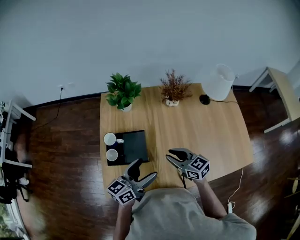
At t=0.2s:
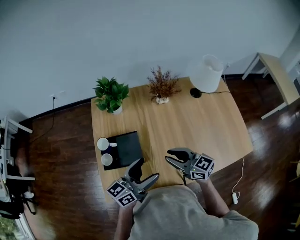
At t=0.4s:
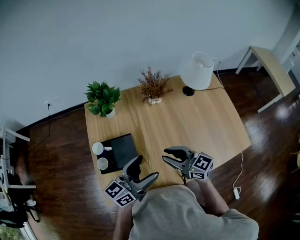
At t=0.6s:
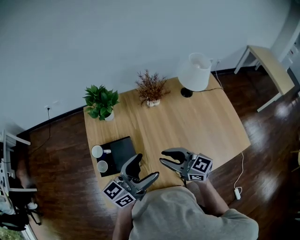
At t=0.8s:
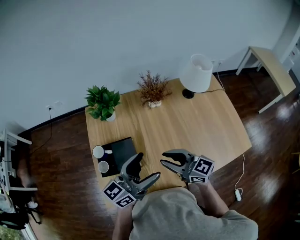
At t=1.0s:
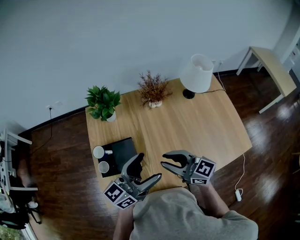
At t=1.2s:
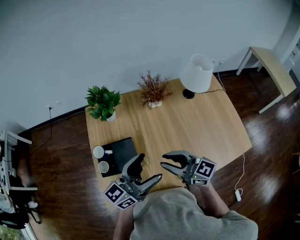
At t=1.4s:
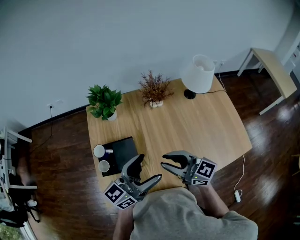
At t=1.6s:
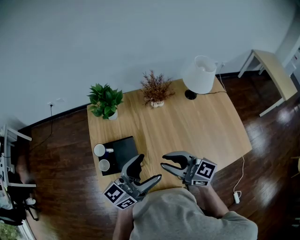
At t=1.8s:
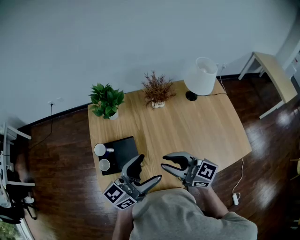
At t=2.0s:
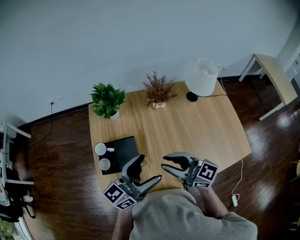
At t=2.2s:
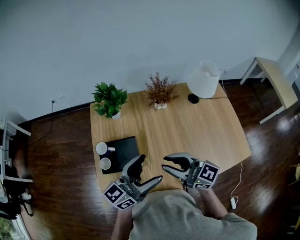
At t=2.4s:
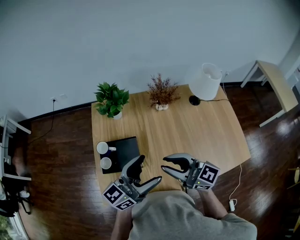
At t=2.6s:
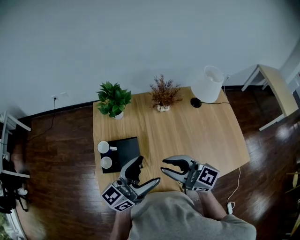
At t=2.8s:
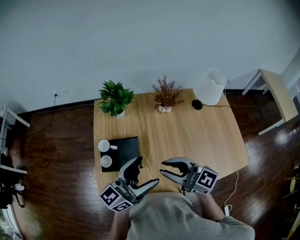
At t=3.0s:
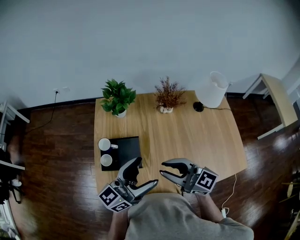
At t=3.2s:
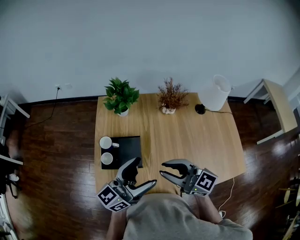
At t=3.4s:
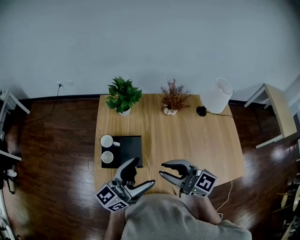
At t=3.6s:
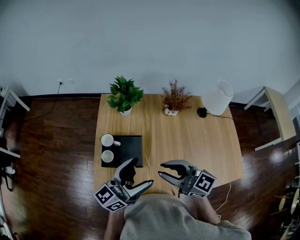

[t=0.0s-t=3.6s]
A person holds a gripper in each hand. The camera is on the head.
t=0.0s to t=1.8s: The left gripper moves upward and to the right, roughly 10 cm; the right gripper is displaced upward by about 15 cm.
t=1.8s to t=3.6s: The two grippers go roughly 5 cm to the left.

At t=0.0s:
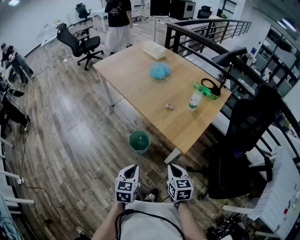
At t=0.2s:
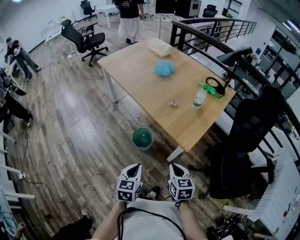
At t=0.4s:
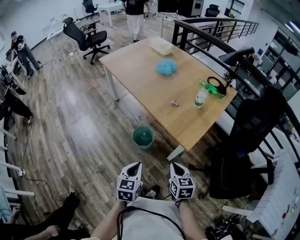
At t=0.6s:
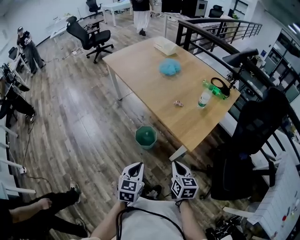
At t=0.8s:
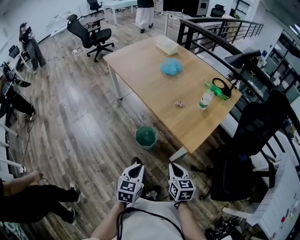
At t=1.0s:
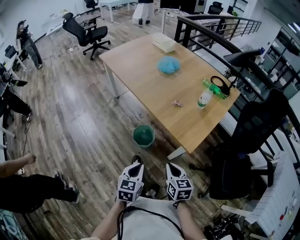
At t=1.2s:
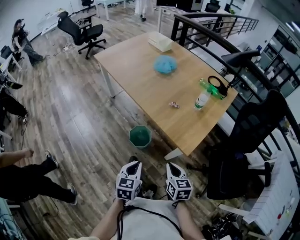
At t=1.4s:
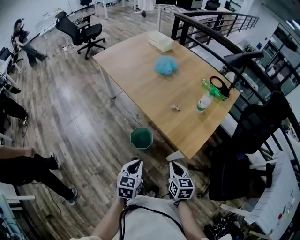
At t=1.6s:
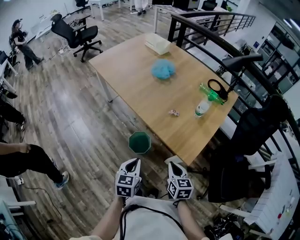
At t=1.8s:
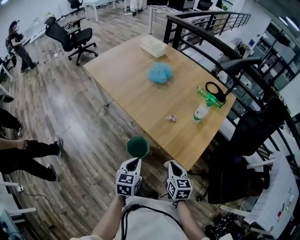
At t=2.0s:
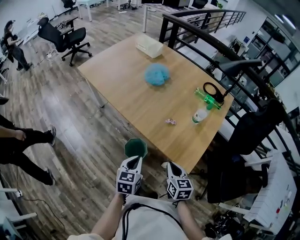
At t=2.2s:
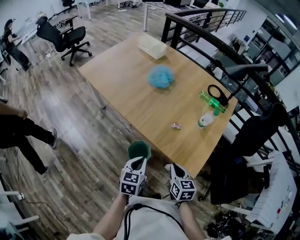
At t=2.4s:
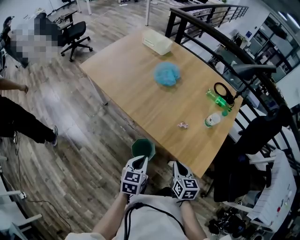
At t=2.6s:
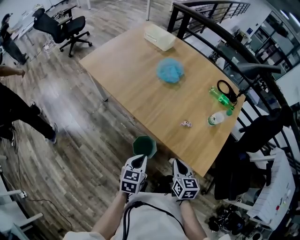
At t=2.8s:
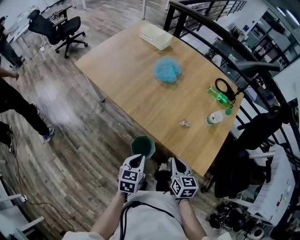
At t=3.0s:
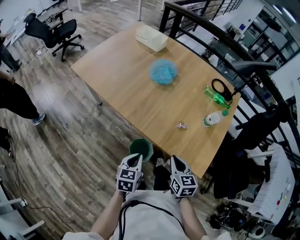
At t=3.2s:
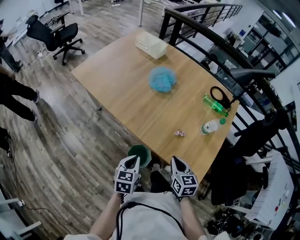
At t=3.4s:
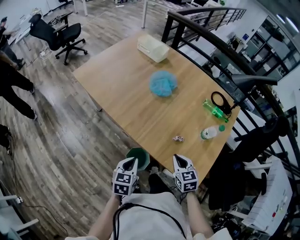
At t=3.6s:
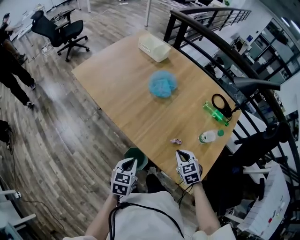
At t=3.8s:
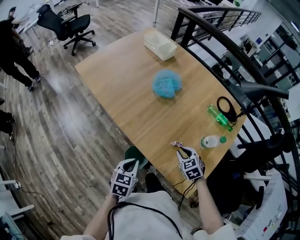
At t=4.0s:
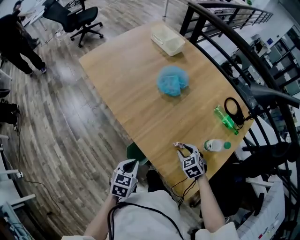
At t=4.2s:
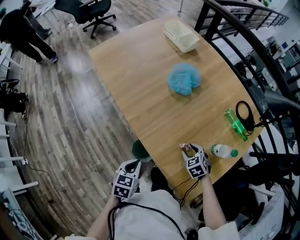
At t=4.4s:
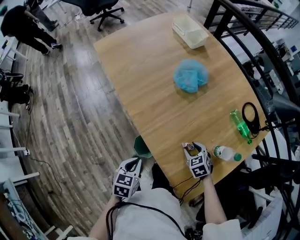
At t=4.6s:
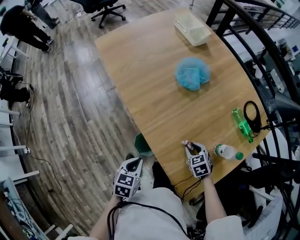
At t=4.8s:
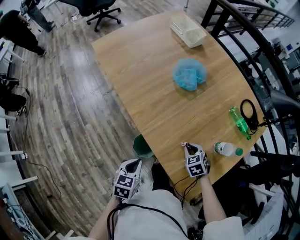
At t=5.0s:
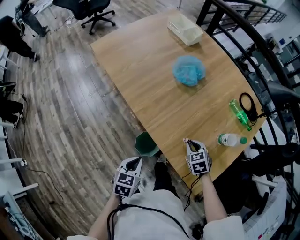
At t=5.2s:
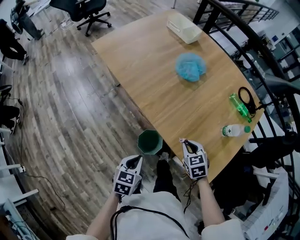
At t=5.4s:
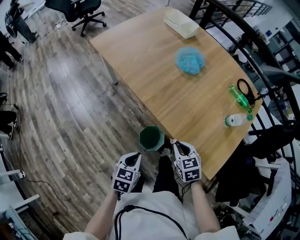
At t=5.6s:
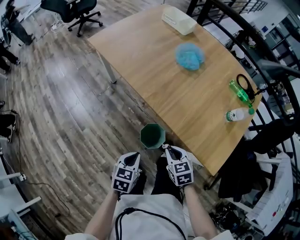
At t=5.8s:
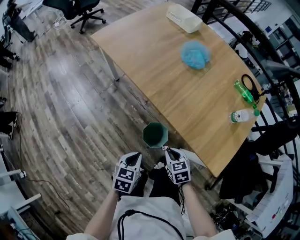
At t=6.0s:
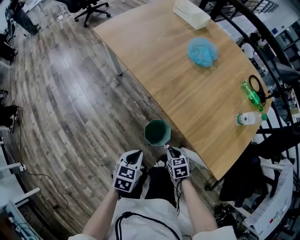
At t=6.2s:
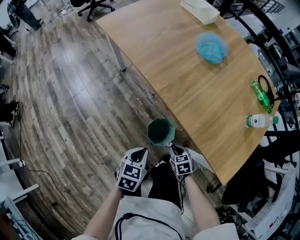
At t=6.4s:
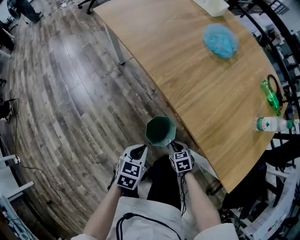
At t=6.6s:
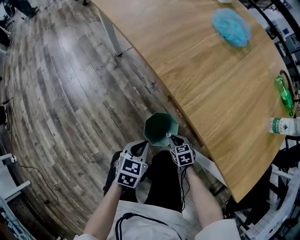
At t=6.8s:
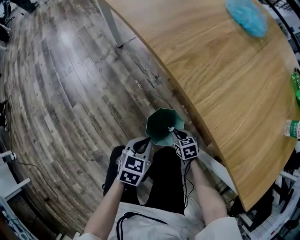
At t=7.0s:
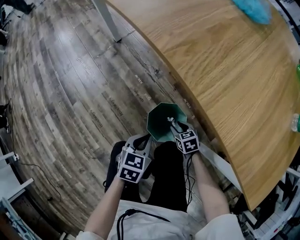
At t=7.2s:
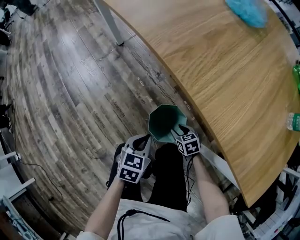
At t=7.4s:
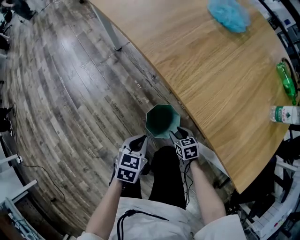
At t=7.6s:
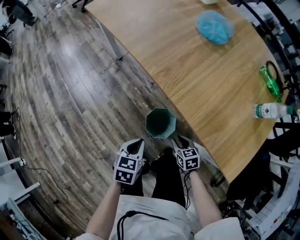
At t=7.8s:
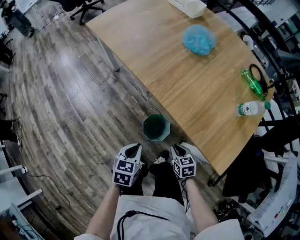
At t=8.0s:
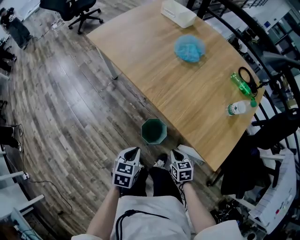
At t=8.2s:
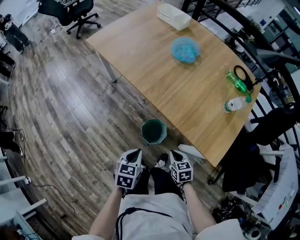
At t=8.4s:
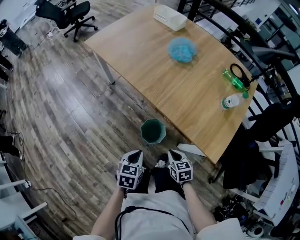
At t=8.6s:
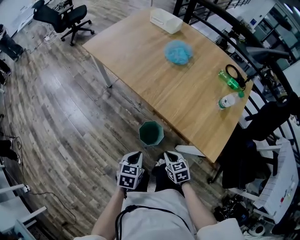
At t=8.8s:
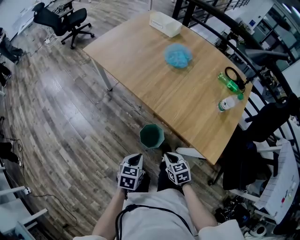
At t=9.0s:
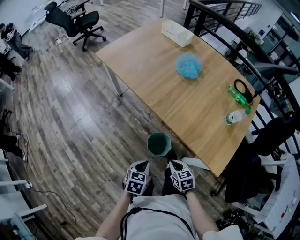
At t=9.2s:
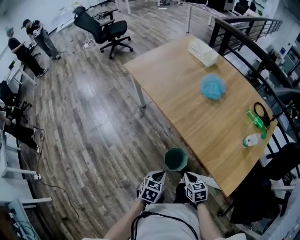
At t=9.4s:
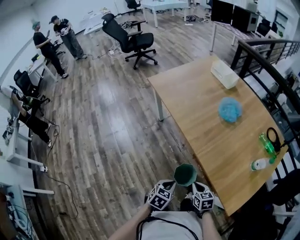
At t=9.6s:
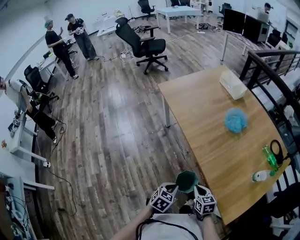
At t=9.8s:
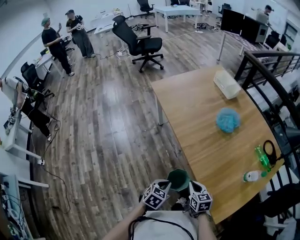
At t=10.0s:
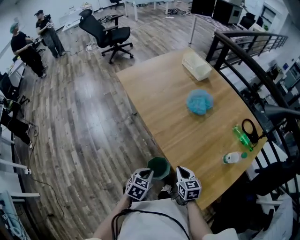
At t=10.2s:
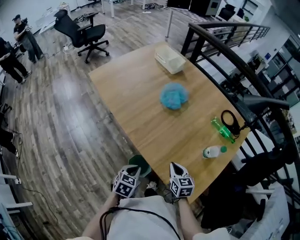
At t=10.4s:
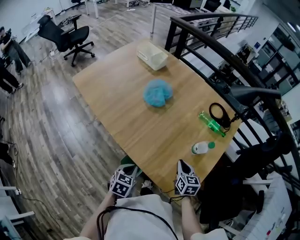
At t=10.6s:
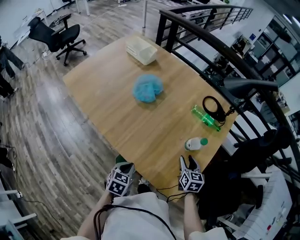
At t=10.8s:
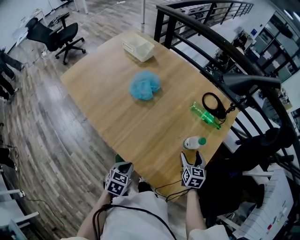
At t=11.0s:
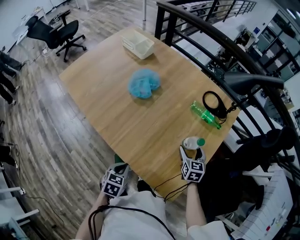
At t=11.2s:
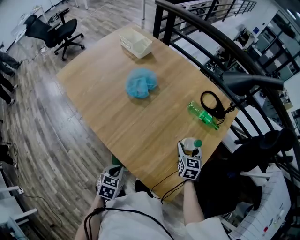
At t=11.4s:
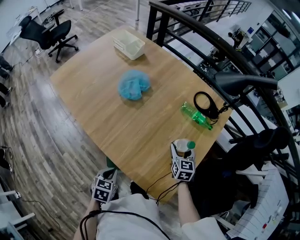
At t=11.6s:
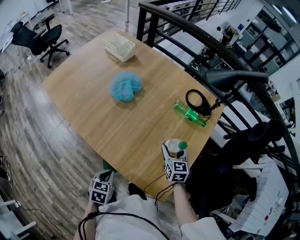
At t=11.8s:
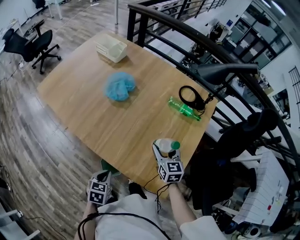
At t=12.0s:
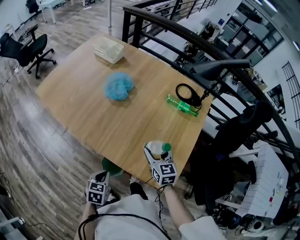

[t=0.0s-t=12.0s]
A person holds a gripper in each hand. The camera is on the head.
t=0.0s to t=1.6s: Both grippers move forward, roughly 10 cm.
t=1.6s to t=3.0s: The two grippers go some 20 cm forward and to the left.
t=3.0s to t=4.4s: The left gripper moves about 5 cm. The right gripper shifts about 25 cm forward, downward and to the right, turns by approximately 50 degrees, and opens its fingers.
t=4.4s to t=6.0s: The right gripper is displaced to the left, backward and downward by approximately 30 cm, rotates roughly 20 degrees, and closes up. Meanwhile the left gripper moves to the left, backward and downward, roughly 15 cm.
t=6.0s to t=7.6s: The left gripper shifts about 10 cm downward. The right gripper moves roughly 35 cm downward and comes back.
t=7.6s to t=9.0s: The right gripper heads upward, covering about 20 cm, while the left gripper moves upward, about 10 cm.
t=9.0s to t=10.4s: The left gripper moves to the right and forward, approximately 20 cm, while the right gripper heads to the right and forward, covering approximately 30 cm, and changes its angle by roughly 30 degrees.
t=10.4s to t=12.0s: The right gripper goes to the right and returns, about 10 cm each way, and opens.

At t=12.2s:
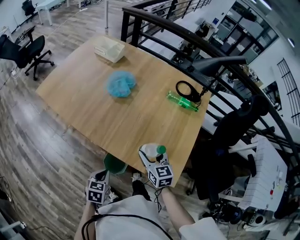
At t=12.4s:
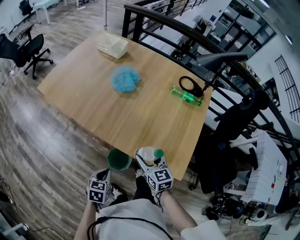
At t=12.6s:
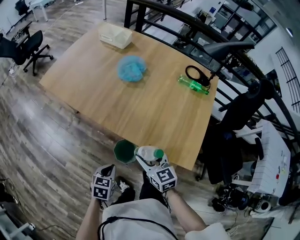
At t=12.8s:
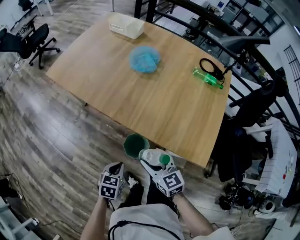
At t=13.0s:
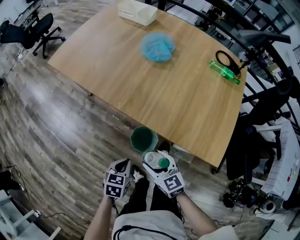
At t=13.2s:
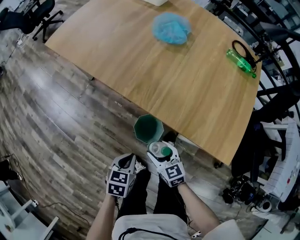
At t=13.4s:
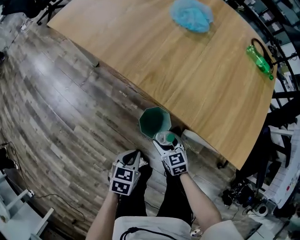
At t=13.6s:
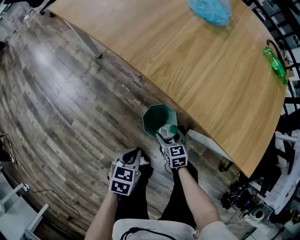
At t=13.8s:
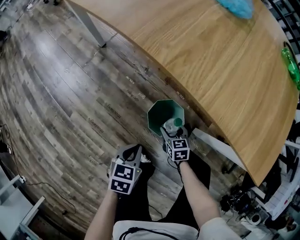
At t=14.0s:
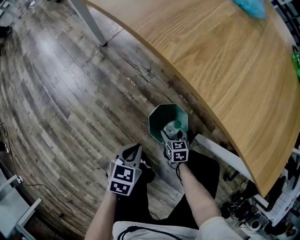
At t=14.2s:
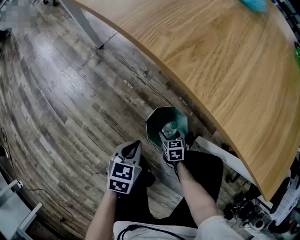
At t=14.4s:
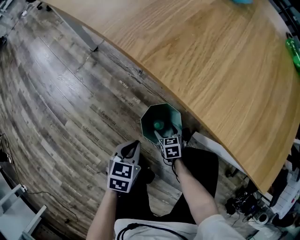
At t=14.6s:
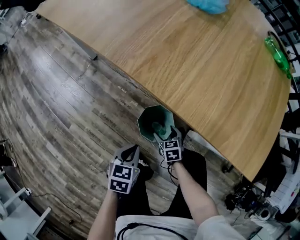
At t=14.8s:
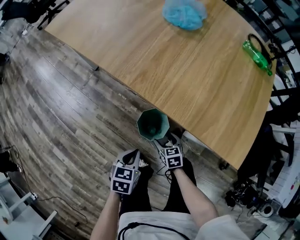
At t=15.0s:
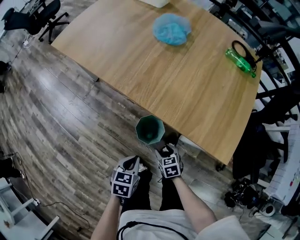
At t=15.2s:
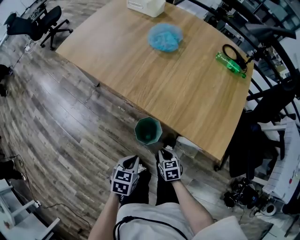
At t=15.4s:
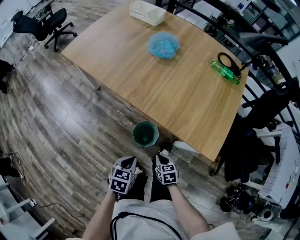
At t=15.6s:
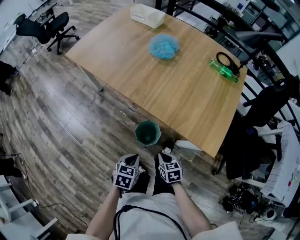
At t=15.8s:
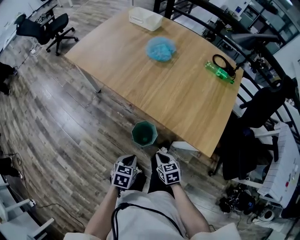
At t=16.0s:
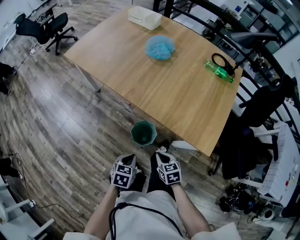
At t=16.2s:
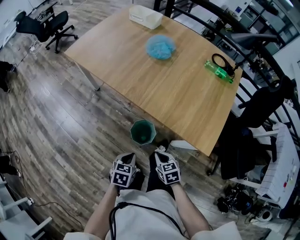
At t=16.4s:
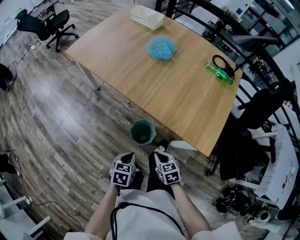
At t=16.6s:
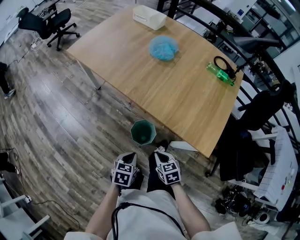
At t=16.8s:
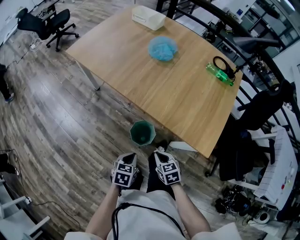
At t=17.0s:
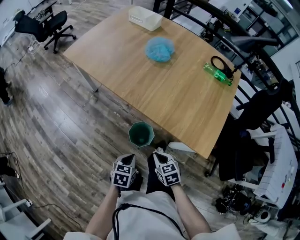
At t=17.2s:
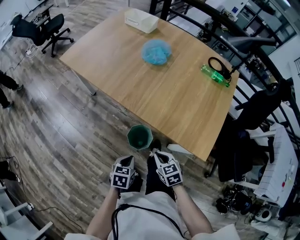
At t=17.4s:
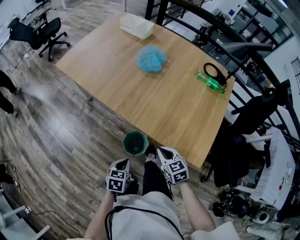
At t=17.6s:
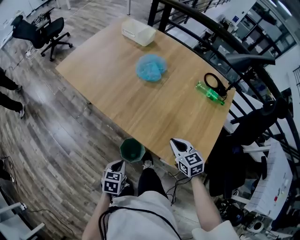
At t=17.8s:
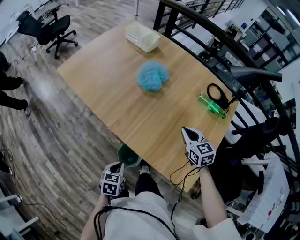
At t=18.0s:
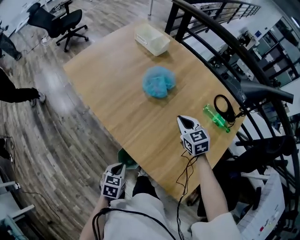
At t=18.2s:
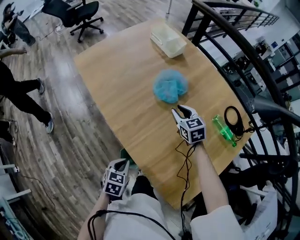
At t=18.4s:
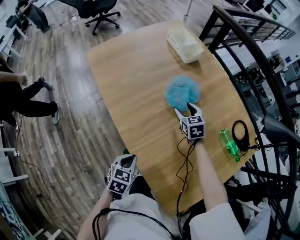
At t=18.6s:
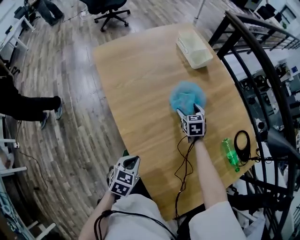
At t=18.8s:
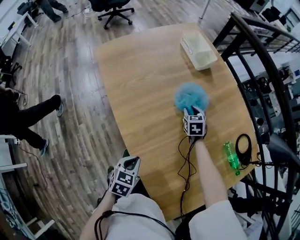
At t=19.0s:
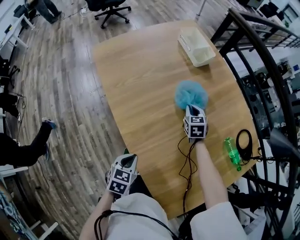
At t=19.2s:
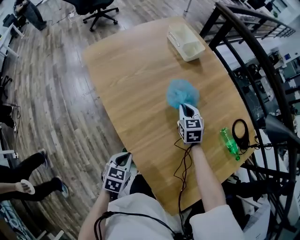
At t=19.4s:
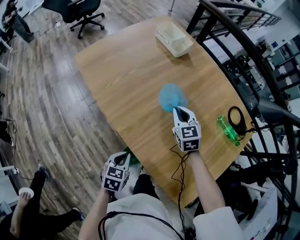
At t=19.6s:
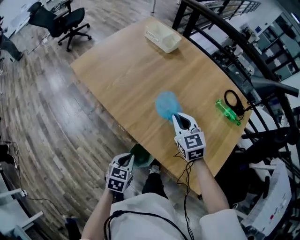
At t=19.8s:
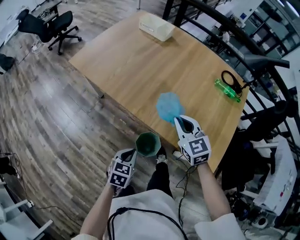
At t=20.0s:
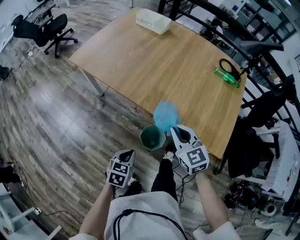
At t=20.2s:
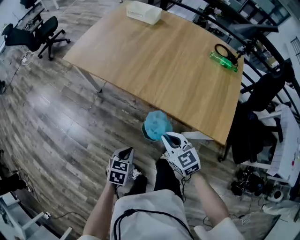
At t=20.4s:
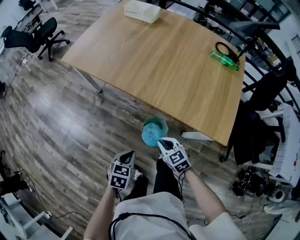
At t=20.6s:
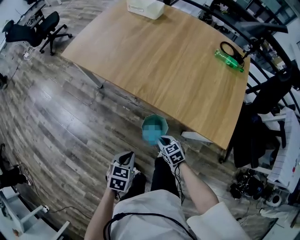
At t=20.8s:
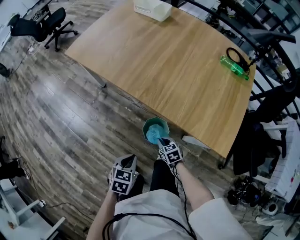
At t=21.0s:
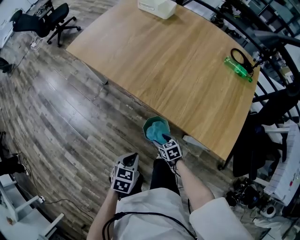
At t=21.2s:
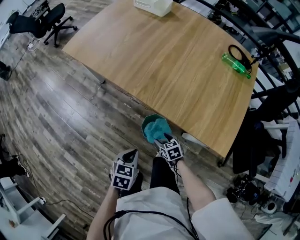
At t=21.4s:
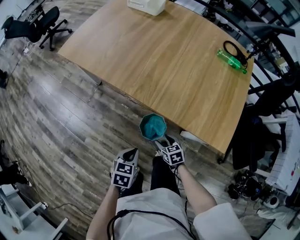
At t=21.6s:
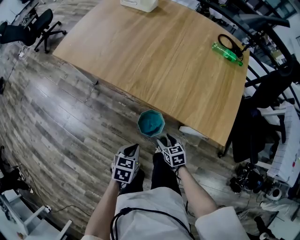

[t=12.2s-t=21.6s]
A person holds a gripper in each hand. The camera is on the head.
t=12.2s to t=13.8s: The left gripper is displaced downward and to the left by approximately 30 cm. The right gripper travels downward and to the left by roughly 50 cm, and rotates some 30 degrees.
t=13.8s to t=15.4s: Both grippers travel together upward, some 25 cm. The right gripper closes.
t=15.4s to t=17.0s: The right gripper is displaced upward by approximately 10 cm.
t=17.0s to t=18.4s: The left gripper goes some 25 cm forward. The right gripper is displaced forward by some 50 cm, rotates approximately 20 degrees, and opens.
t=18.4s to t=20.0s: The left gripper shifts some 25 cm to the left and backward, and rotates some 20 degrees. The right gripper moves backward, about 40 cm, changes its angle by approximately 20 degrees, and closes up.
t=20.0s to t=21.6s: The right gripper goes some 25 cm downward, changes its angle by some 40 degrees, and opens its fingers. Meanwhile the left gripper moves to the right, approximately 5 cm.
